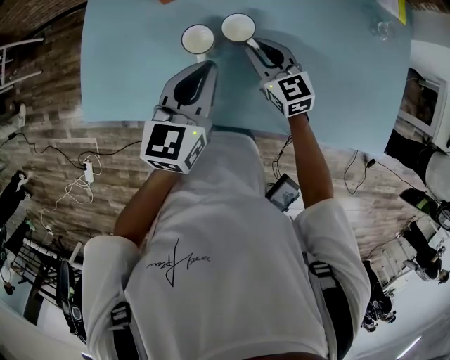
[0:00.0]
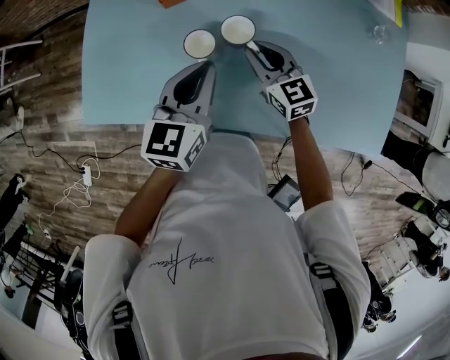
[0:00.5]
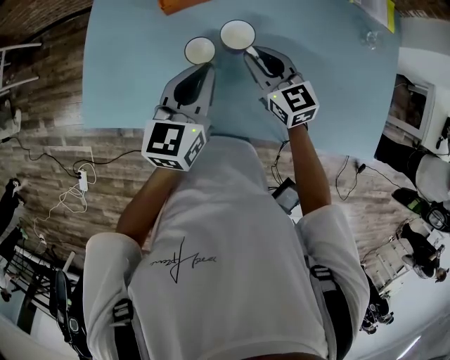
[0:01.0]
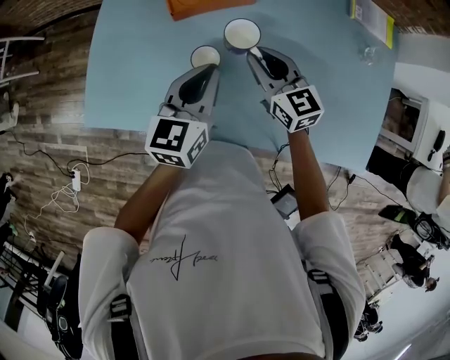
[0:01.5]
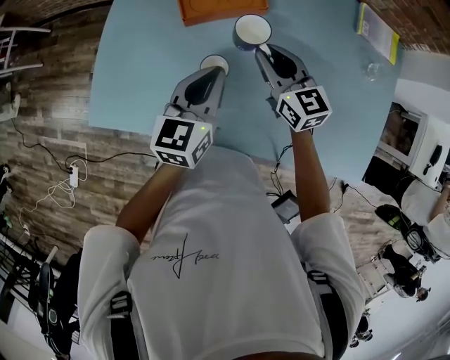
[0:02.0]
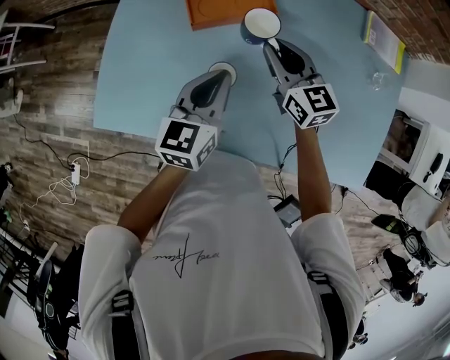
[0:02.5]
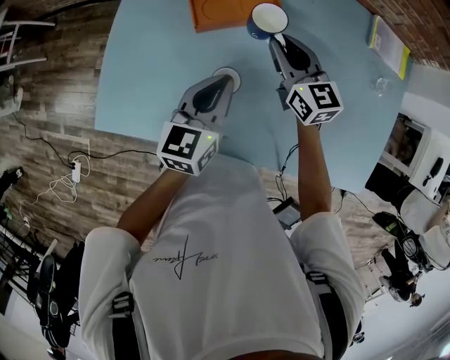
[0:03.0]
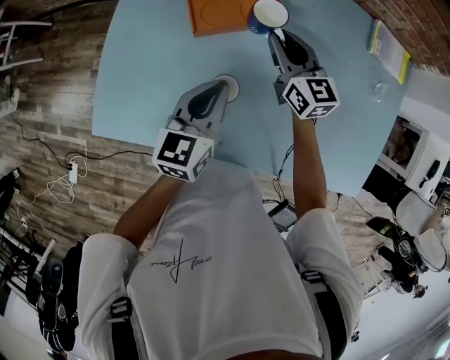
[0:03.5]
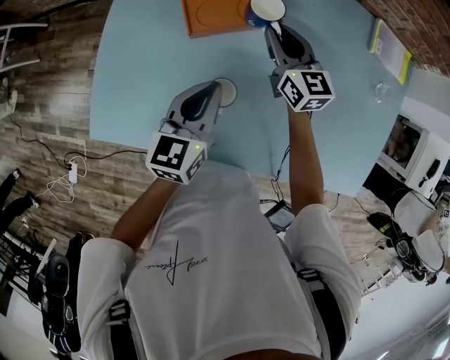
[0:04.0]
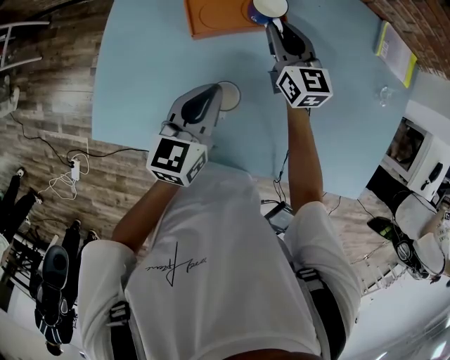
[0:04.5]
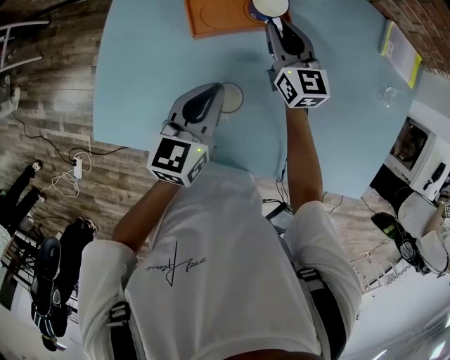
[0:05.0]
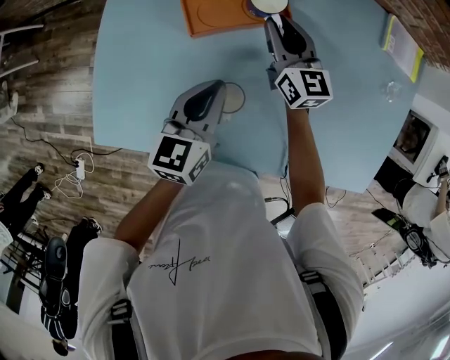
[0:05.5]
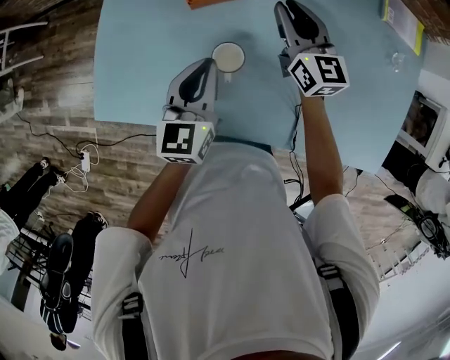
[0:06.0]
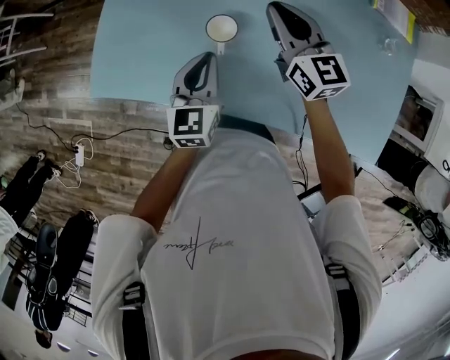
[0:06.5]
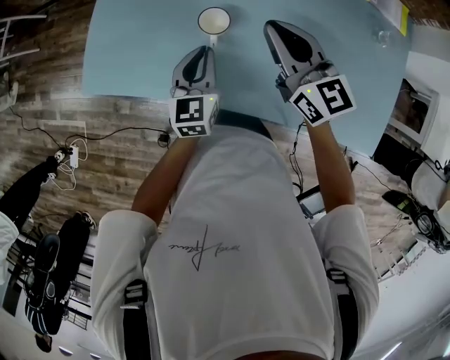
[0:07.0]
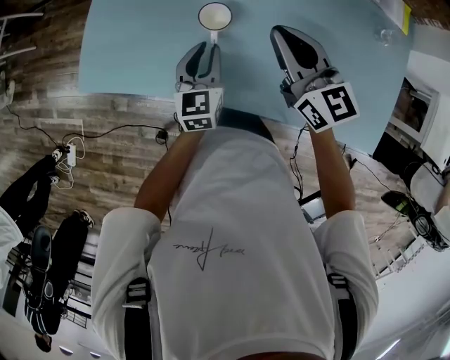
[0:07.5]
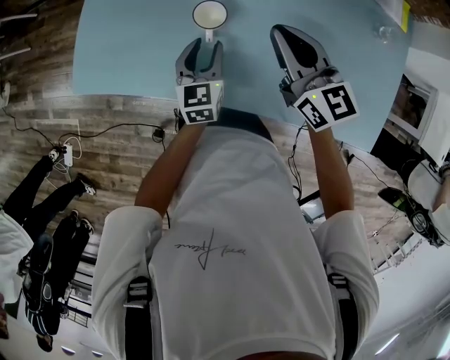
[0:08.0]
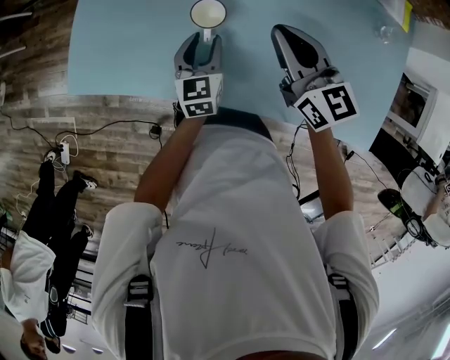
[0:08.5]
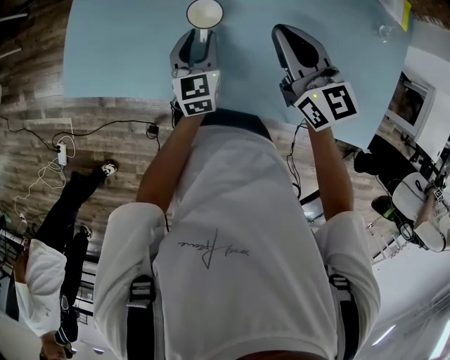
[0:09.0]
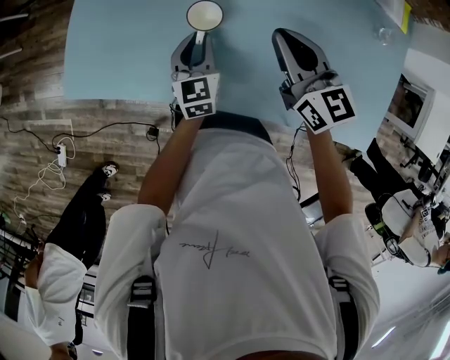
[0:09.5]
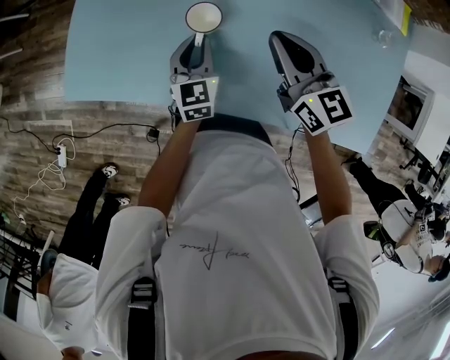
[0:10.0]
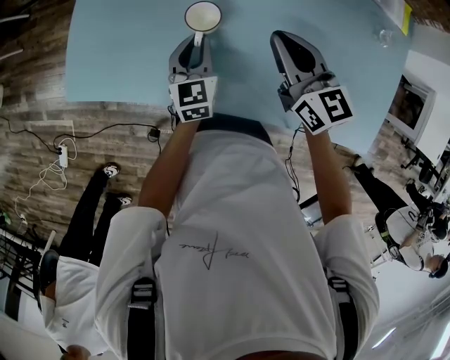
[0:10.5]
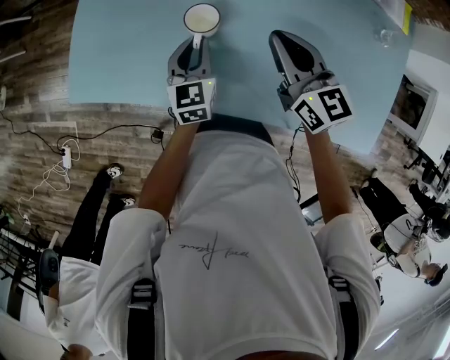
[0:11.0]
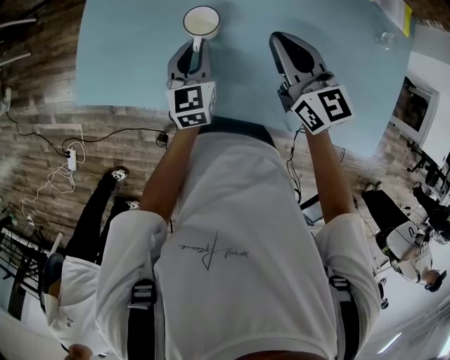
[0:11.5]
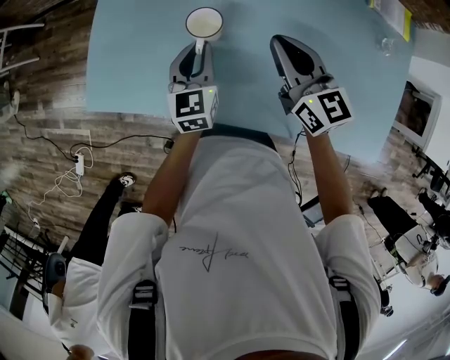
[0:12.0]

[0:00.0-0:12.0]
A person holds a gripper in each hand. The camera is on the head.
0:00.0 to 0:02.0: The left gripper ends up about 5 cm from where it was, while the right gripper travels upward and forward by roughly 10 cm.
0:02.0 to 0:04.0: The right gripper travels forward by about 10 cm.
0:04.0 to 0:06.0: The grippers move only a little.
0:06.0 to 0:08.0: The left gripper is displaced downward and backward by some 10 cm, and opens up. The right gripper goes about 15 cm backward.
0:08.0 to 0:10.0: The left gripper closes.
0:10.0 to 0:12.0: The left gripper is displaced upward by roughly 5 cm.

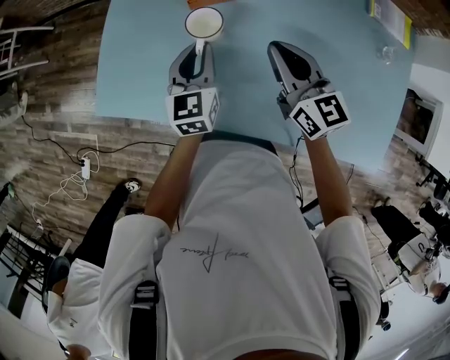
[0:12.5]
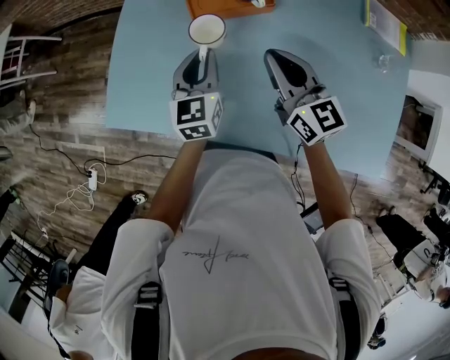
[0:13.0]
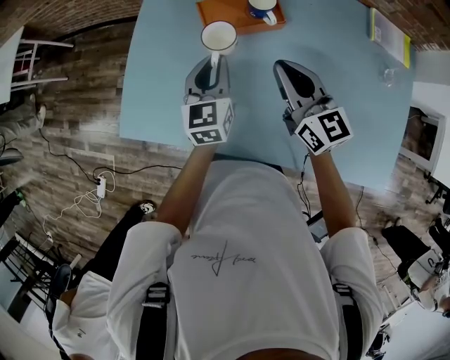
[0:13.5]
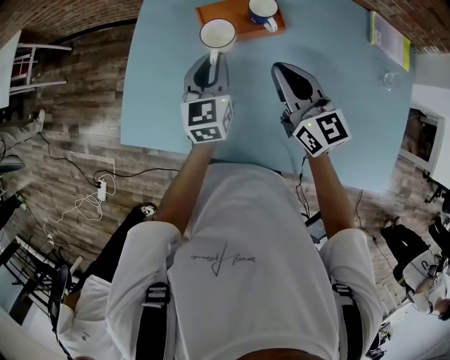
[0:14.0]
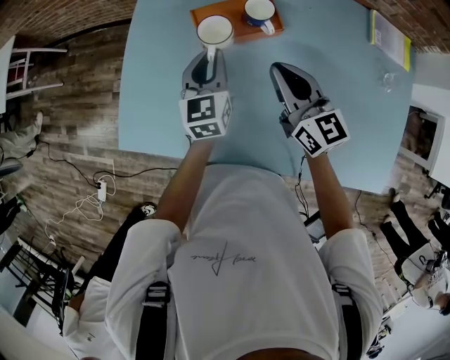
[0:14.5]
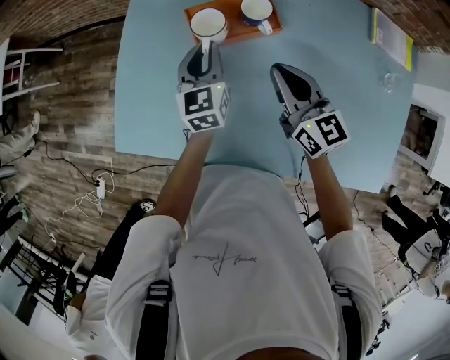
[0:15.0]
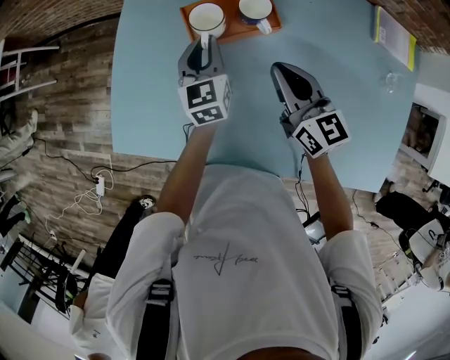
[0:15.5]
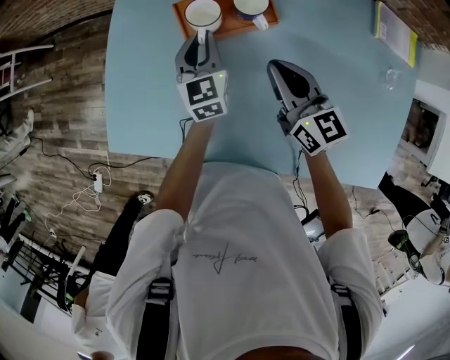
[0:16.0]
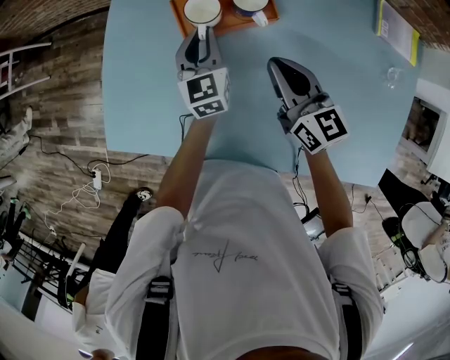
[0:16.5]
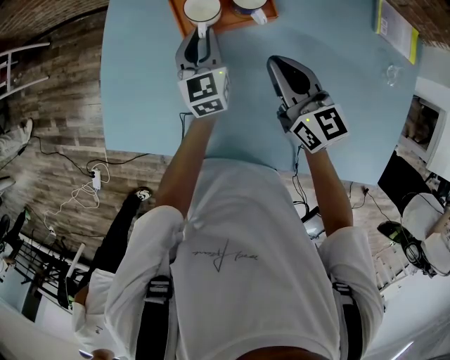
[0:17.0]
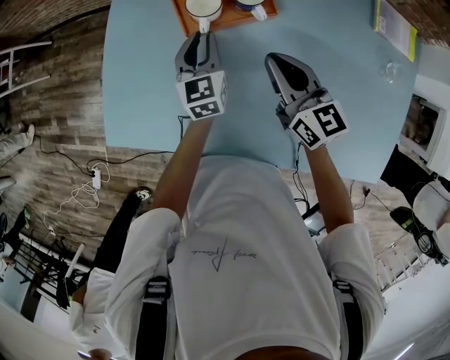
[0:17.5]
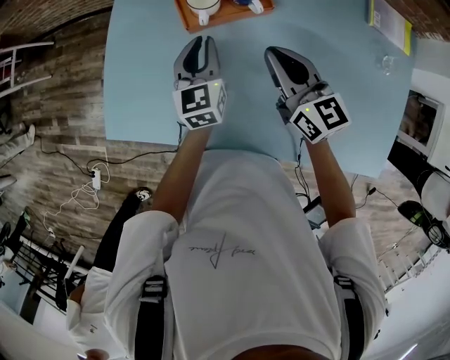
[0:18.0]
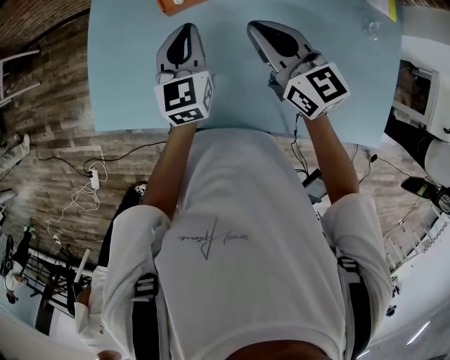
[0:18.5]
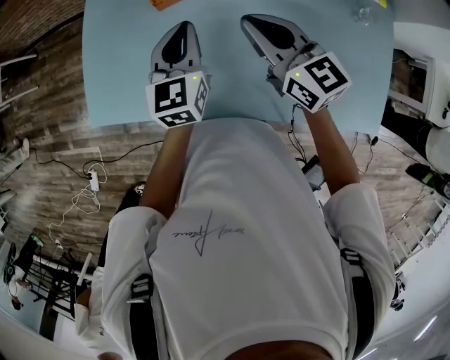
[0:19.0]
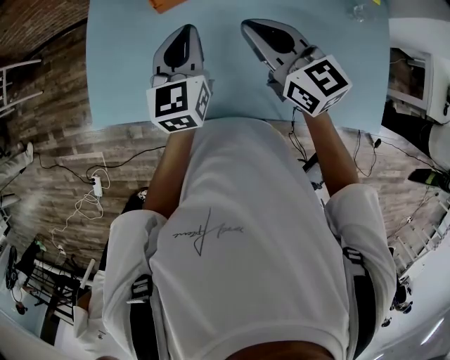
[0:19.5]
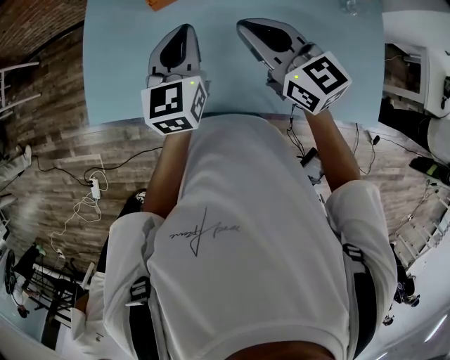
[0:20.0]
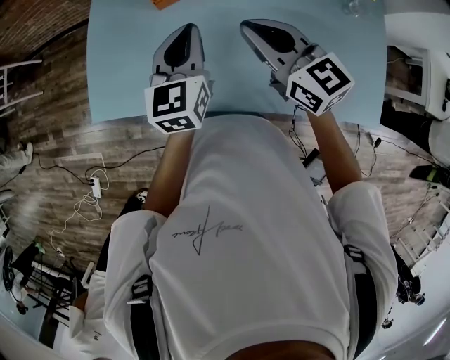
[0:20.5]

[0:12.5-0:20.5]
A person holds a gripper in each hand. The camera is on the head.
0:12.5 to 0:14.5: The left gripper is displaced forward by approximately 10 cm; the right gripper moves forward, approximately 5 cm.
0:14.5 to 0:16.5: The left gripper heads downward, covering approximately 5 cm.
0:16.5 to 0:18.5: The right gripper moves roughly 5 cm. The left gripper is displaced backward and upward by about 10 cm.
0:18.5 to 0:20.5: The left gripper goes some 10 cm backward and upward. The right gripper heads backward, covering approximately 5 cm.

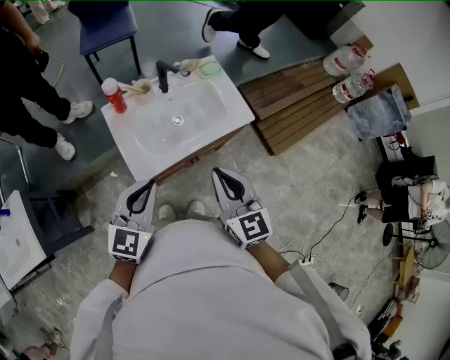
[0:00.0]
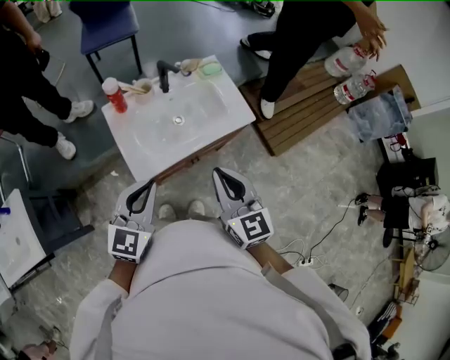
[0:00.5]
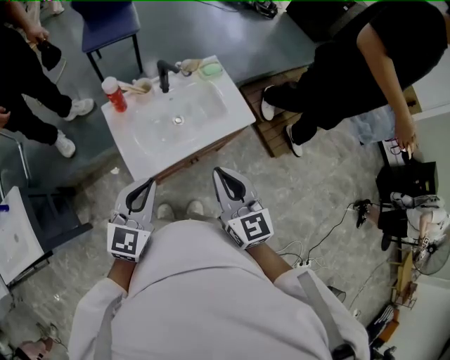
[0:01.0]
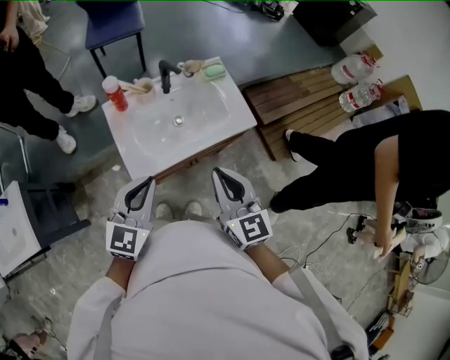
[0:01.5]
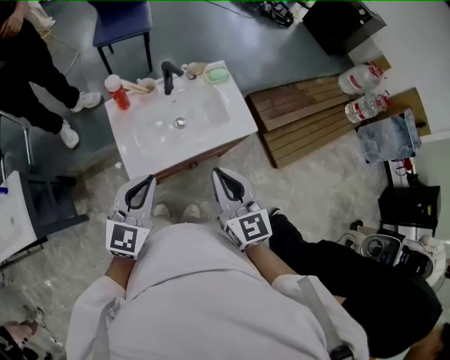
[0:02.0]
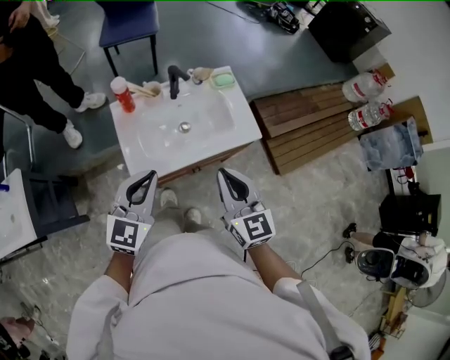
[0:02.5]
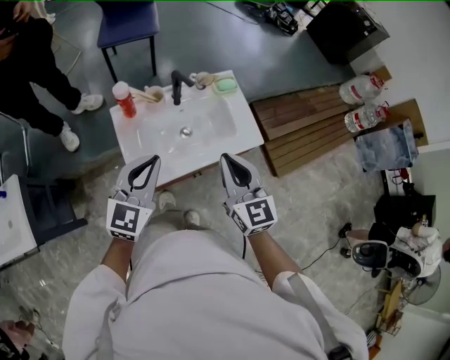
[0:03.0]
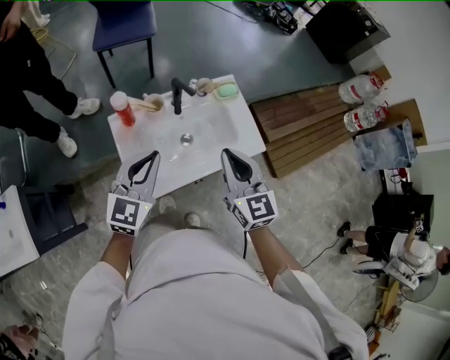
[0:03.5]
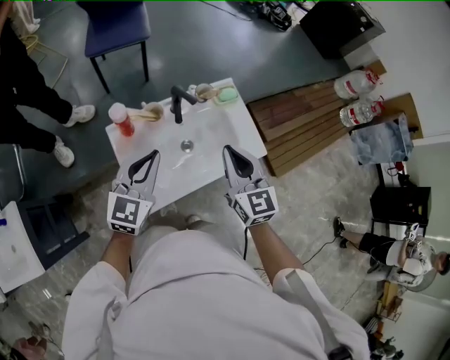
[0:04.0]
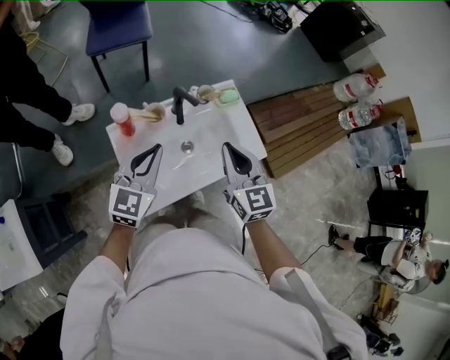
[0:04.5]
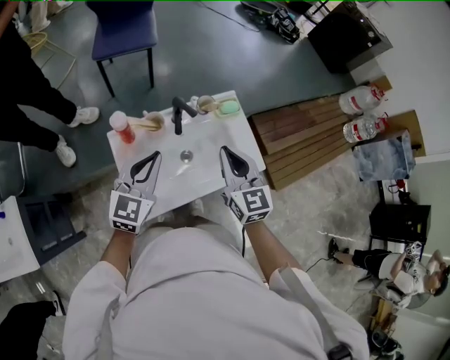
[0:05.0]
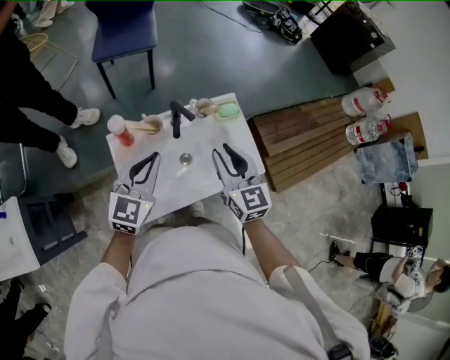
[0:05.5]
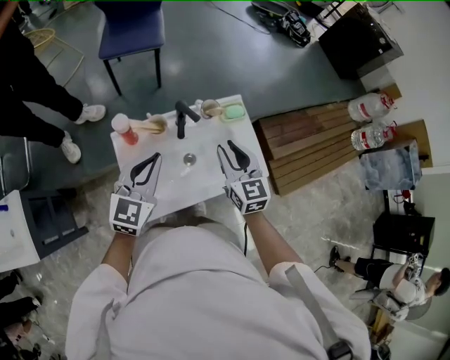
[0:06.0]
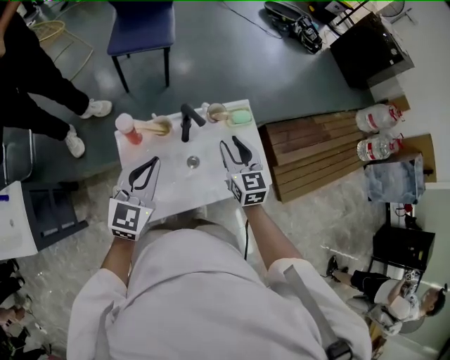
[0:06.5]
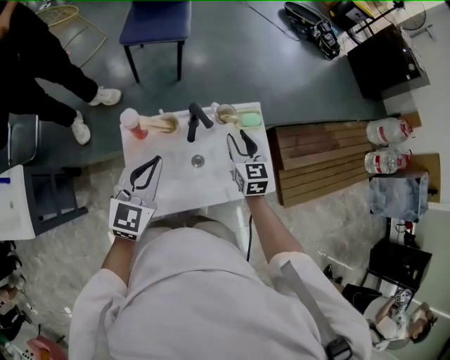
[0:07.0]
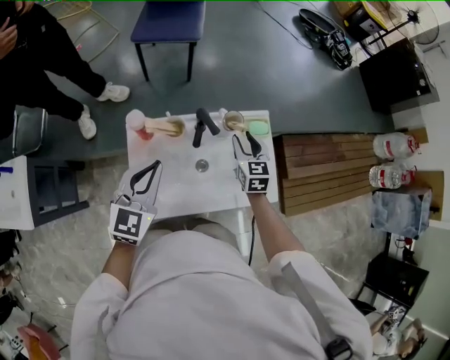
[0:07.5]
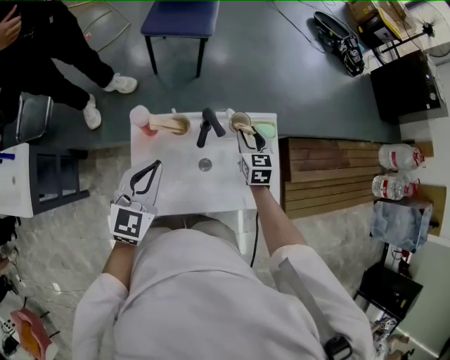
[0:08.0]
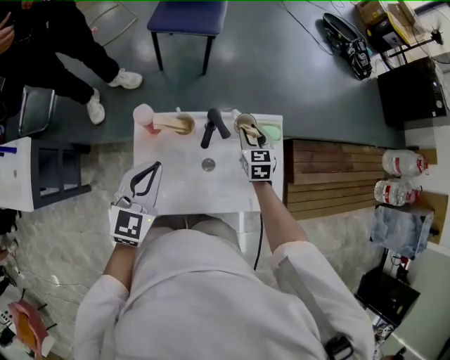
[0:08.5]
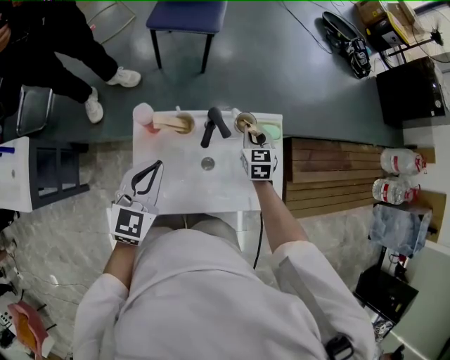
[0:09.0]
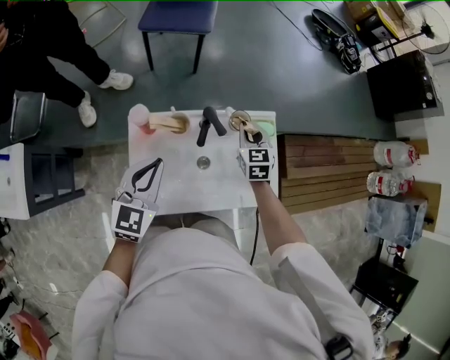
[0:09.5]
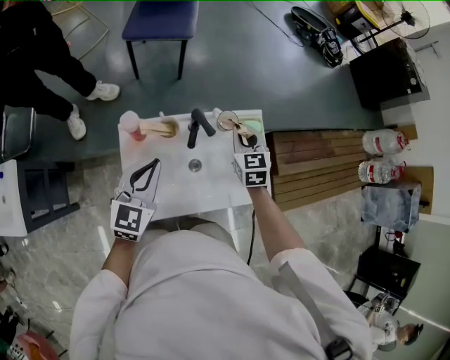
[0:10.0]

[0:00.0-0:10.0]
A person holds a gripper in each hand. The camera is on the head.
0:00.0 to 0:02.0: The grippers make only small movements.
0:02.0 to 0:04.0: Both grippers travel together forward, some 20 cm.
0:04.0 to 0:06.0: The right gripper is displaced forward by some 10 cm, and opens its fingers.
0:06.0 to 0:08.0: The right gripper moves forward and downward, approximately 20 cm.
0:08.0 to 0:10.0: The right gripper shifts roughly 5 cm upward, and closes its fingers.
